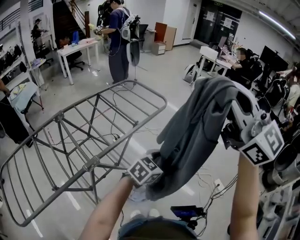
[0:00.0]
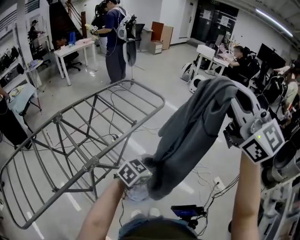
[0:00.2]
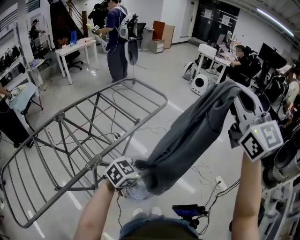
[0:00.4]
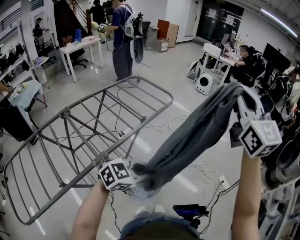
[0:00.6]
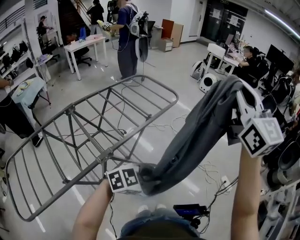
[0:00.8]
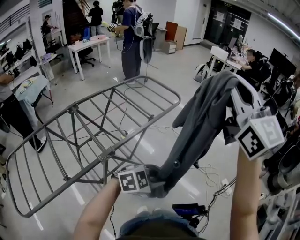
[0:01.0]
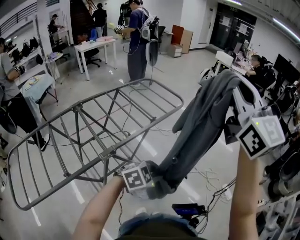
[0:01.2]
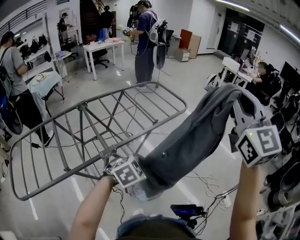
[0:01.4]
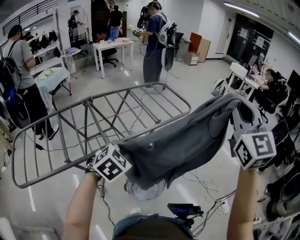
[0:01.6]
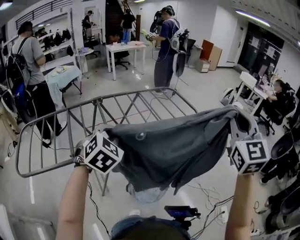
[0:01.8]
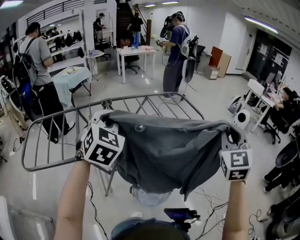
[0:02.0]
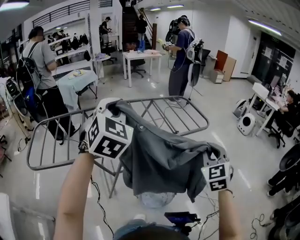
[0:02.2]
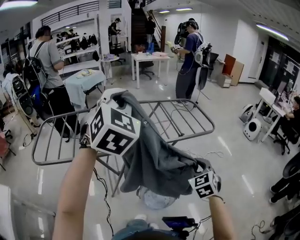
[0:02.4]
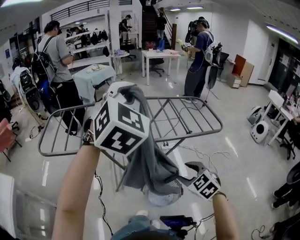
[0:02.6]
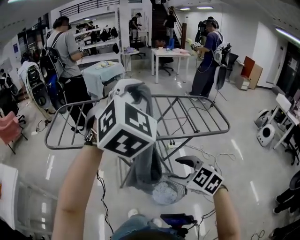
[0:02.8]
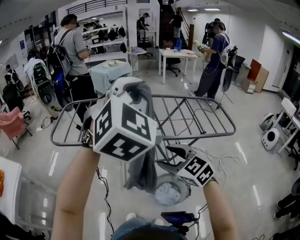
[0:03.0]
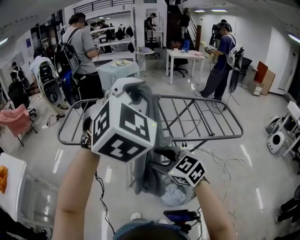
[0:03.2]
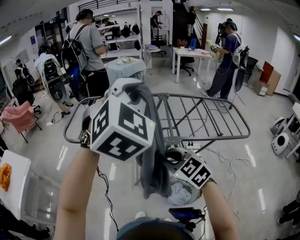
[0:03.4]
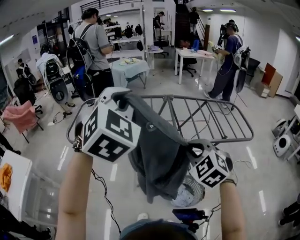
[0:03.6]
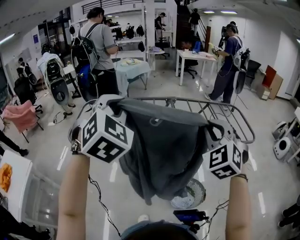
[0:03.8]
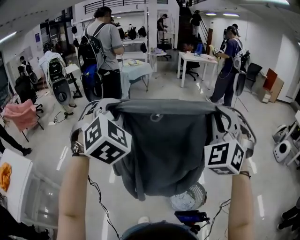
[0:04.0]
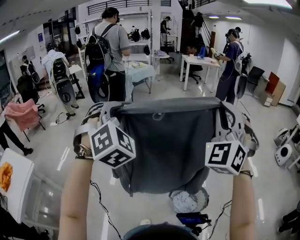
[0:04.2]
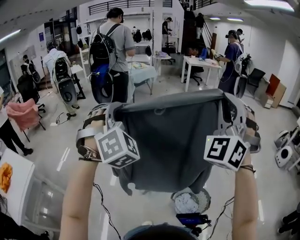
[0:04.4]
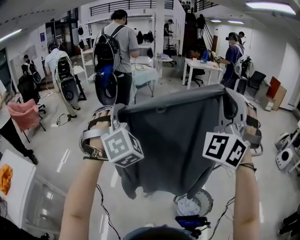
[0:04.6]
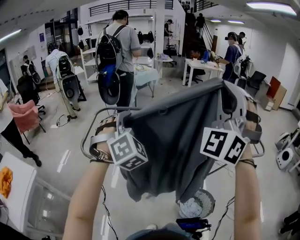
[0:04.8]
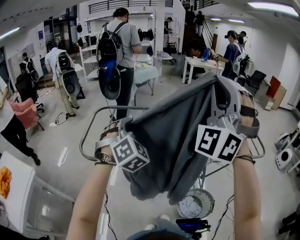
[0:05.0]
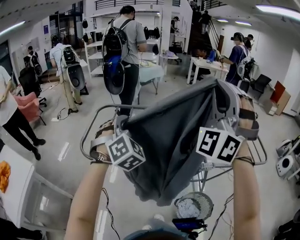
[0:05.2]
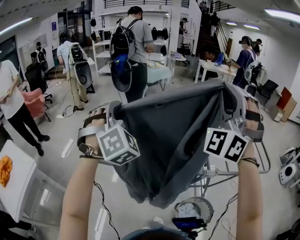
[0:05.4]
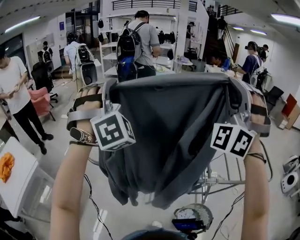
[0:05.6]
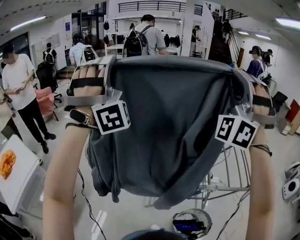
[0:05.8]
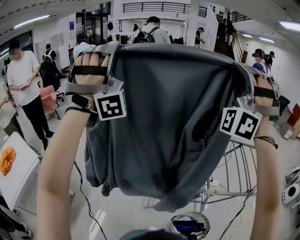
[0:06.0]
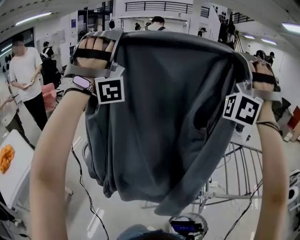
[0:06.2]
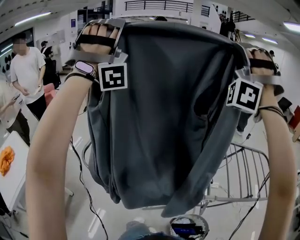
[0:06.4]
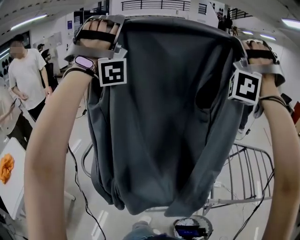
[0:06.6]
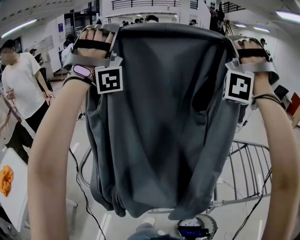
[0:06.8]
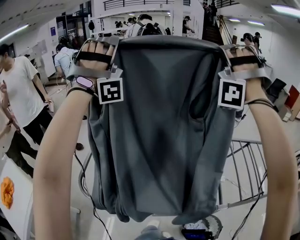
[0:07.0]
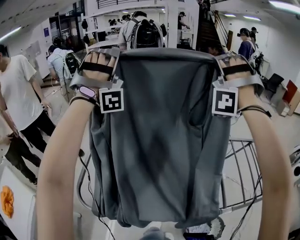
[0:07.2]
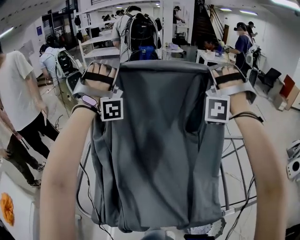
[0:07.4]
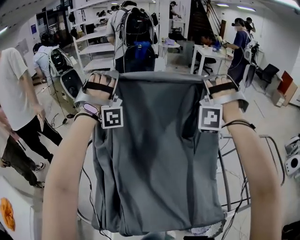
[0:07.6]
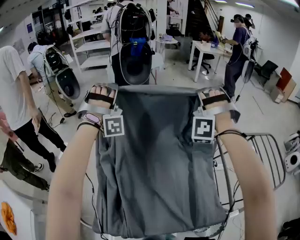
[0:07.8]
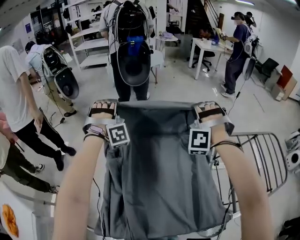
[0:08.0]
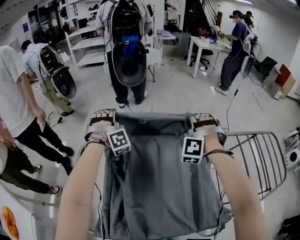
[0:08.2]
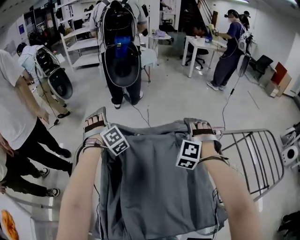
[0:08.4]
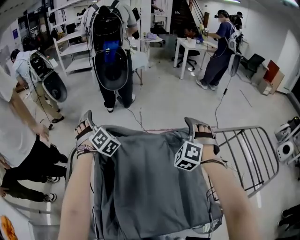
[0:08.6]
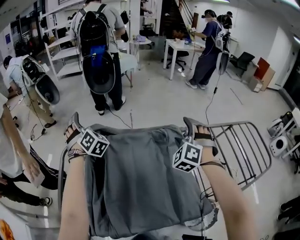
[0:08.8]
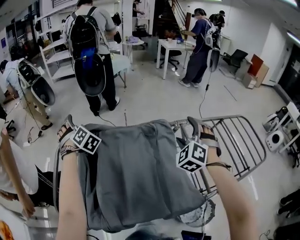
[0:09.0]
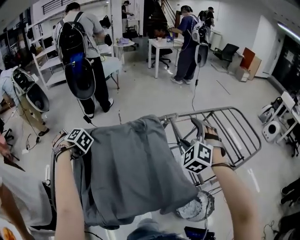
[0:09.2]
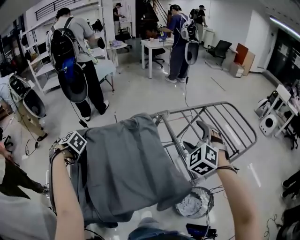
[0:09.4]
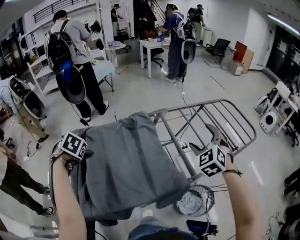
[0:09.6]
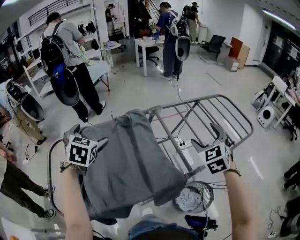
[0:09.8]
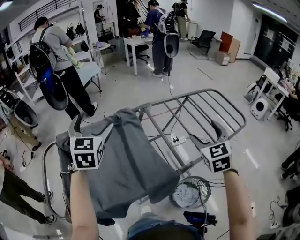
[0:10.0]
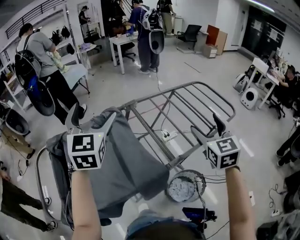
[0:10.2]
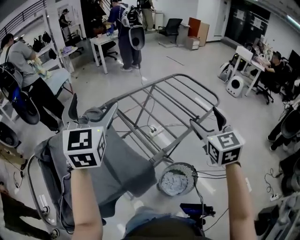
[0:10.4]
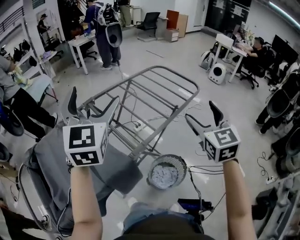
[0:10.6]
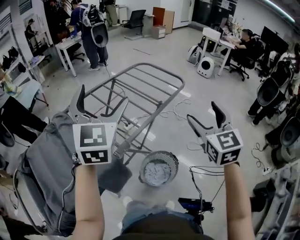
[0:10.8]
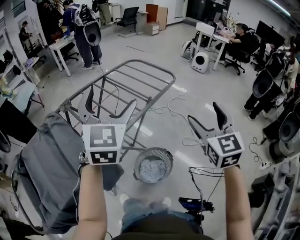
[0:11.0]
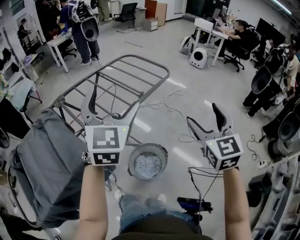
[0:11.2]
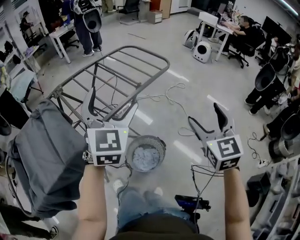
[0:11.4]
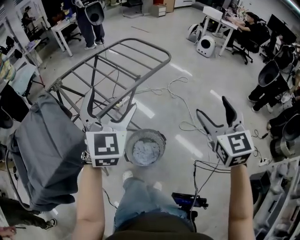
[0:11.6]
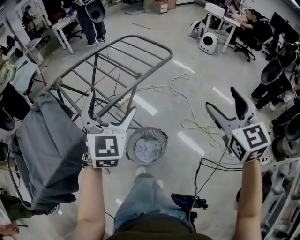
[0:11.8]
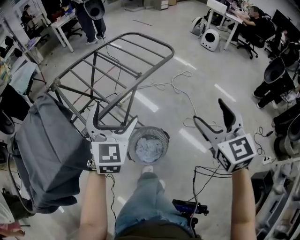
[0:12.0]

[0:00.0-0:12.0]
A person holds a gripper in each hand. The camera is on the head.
0:00.0 to 0:01.6: The left gripper changes place by approximately 25 cm, turns by approximately 40 degrees, and closes up.
0:01.6 to 0:03.0: The left gripper travels upward by approximately 30 cm, and angles its fingers upward, by roughly 40 degrees. The right gripper travels downward by about 25 cm, angles its fingers downward, by some 30 degrees, and opens.
0:03.0 to 0:04.4: The left gripper travels to the left and forward by about 30 cm, and changes its angle by approximately 30 degrees; the right gripper is displaced upward by some 30 cm, tilts its fingers approximately 40 degrees upward, and closes its fingers.
0:04.4 to 0:06.0: The right gripper is displaced forward and upward by approximately 25 cm, and turns by roughly 30 degrees; the left gripper is displaced upward, forward and to the left by roughly 25 cm, and points its fingers approximately 50 degrees further upward.
0:06.0 to 0:07.6: Both grippers move forward and downward, some 40 cm. The left gripper swivels roughly 30 degrees. Meanwhile the right gripper swivels about 30 degrees.
0:07.6 to 0:09.0: The right gripper travels downward, backward and to the right by some 30 cm, twists roughly 40 degrees clockwise, seen from behind, and opens up; the left gripper moves downward, roughly 25 cm, points its fingers approximately 50 degrees further downward, and opens its fingers.
0:09.0 to 0:10.4: Both grippers are carried about 40 cm. The right gripper rotates around the line of its fingers by some 60 degrees, clockwise from behind. Meanwhile the left gripper points its fingers some 30 degrees further upward.
0:10.4 to 0:12.0: The right gripper heads to the right, covering approximately 30 cm. The left gripper moves to the right and downward, approximately 40 cm, and changes its angle by roughly 20 degrees.

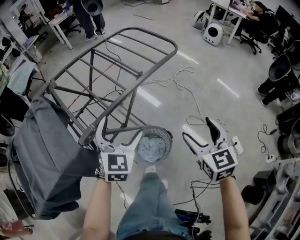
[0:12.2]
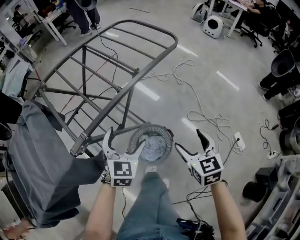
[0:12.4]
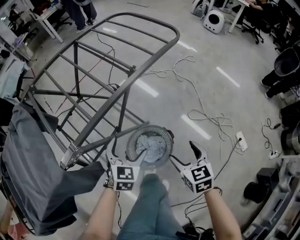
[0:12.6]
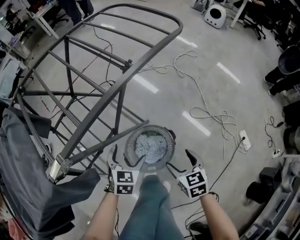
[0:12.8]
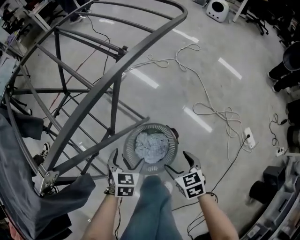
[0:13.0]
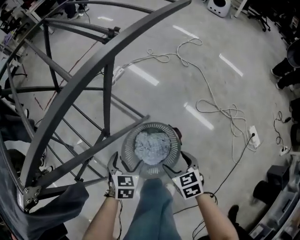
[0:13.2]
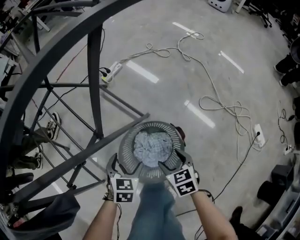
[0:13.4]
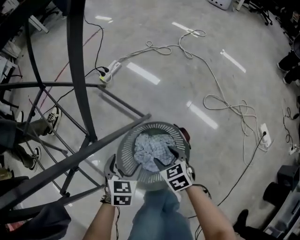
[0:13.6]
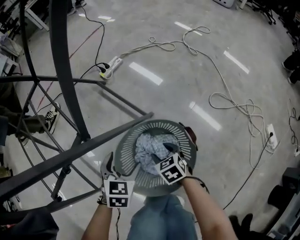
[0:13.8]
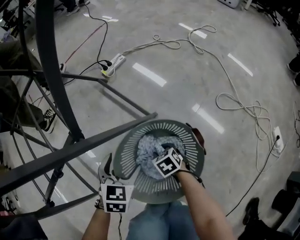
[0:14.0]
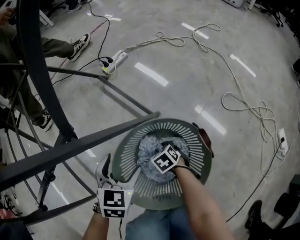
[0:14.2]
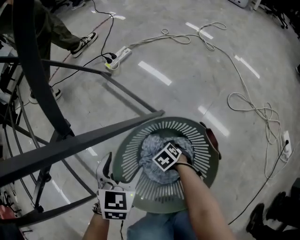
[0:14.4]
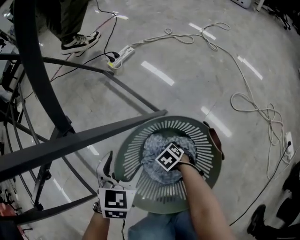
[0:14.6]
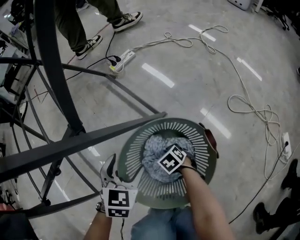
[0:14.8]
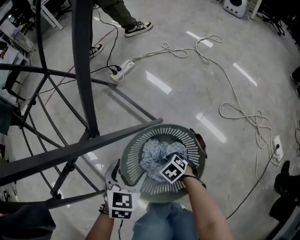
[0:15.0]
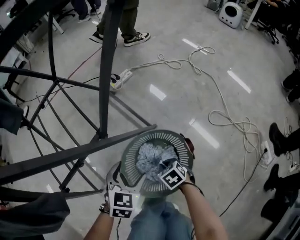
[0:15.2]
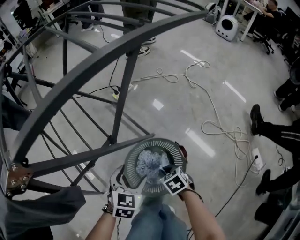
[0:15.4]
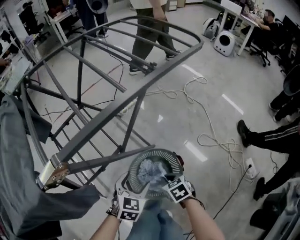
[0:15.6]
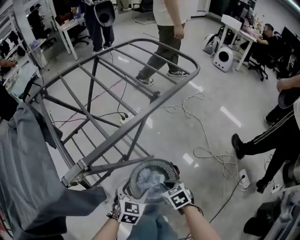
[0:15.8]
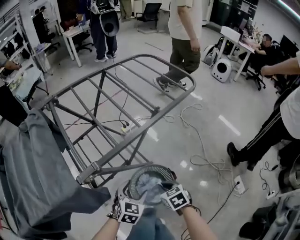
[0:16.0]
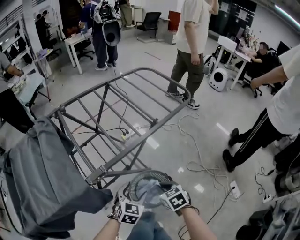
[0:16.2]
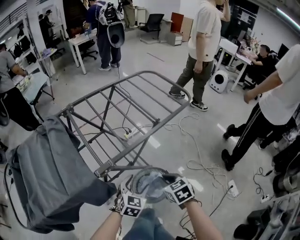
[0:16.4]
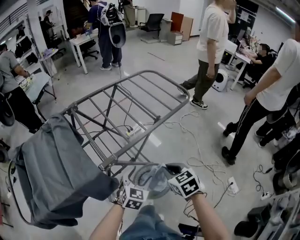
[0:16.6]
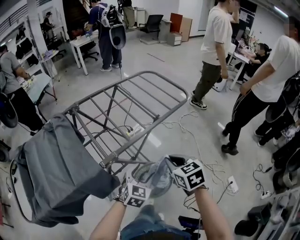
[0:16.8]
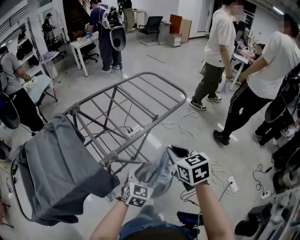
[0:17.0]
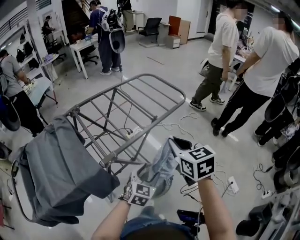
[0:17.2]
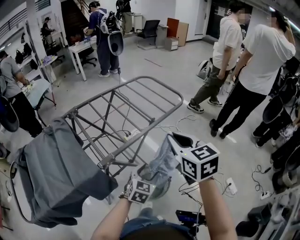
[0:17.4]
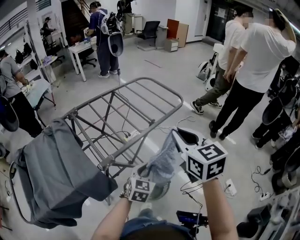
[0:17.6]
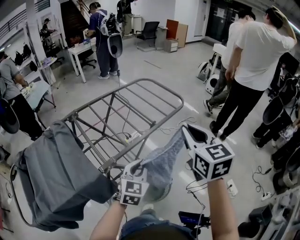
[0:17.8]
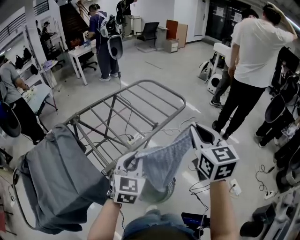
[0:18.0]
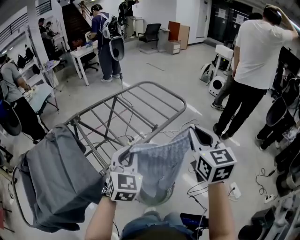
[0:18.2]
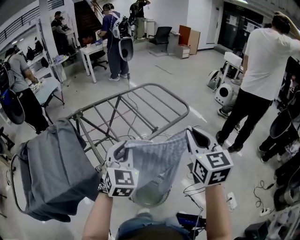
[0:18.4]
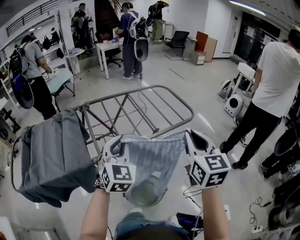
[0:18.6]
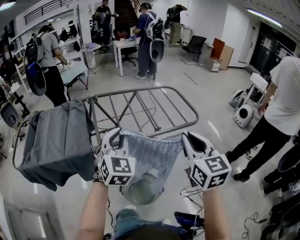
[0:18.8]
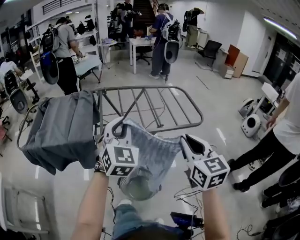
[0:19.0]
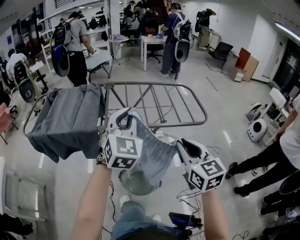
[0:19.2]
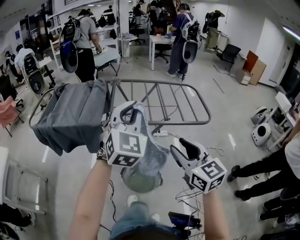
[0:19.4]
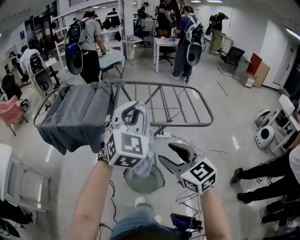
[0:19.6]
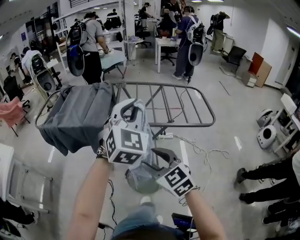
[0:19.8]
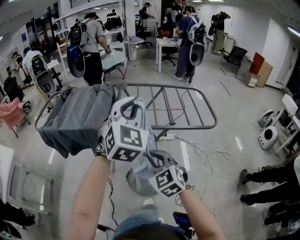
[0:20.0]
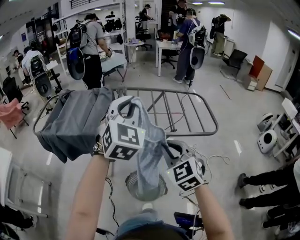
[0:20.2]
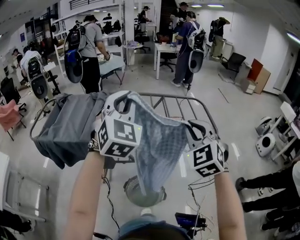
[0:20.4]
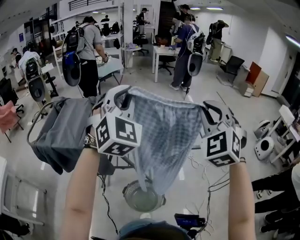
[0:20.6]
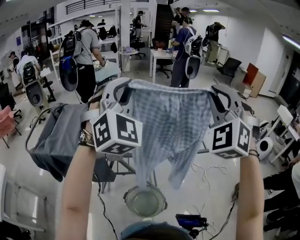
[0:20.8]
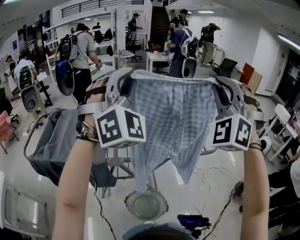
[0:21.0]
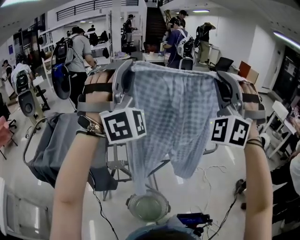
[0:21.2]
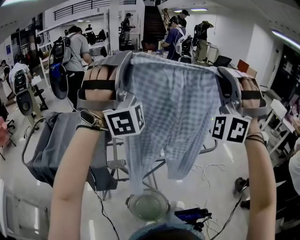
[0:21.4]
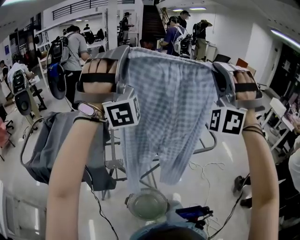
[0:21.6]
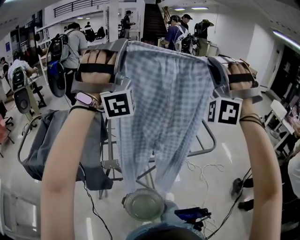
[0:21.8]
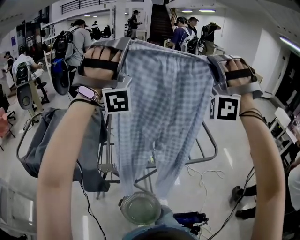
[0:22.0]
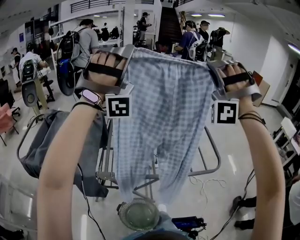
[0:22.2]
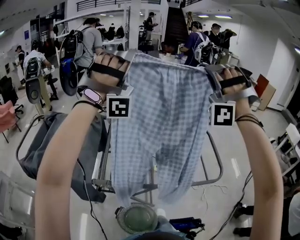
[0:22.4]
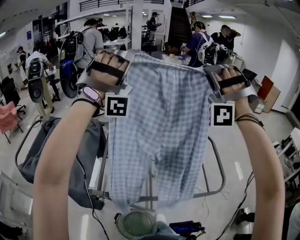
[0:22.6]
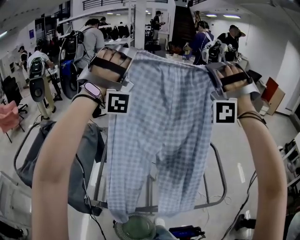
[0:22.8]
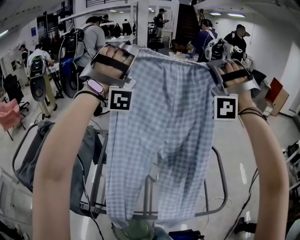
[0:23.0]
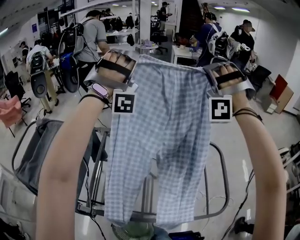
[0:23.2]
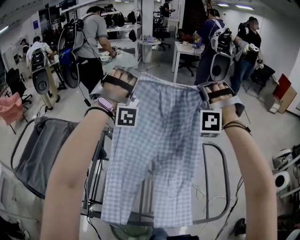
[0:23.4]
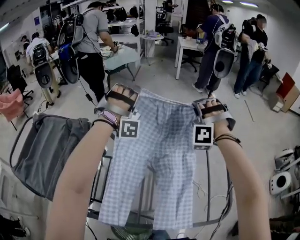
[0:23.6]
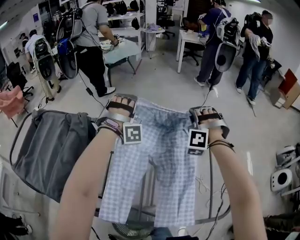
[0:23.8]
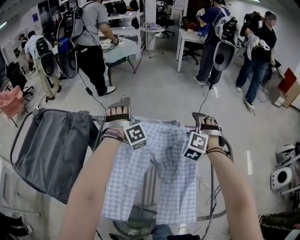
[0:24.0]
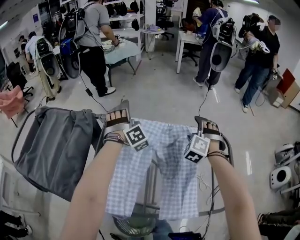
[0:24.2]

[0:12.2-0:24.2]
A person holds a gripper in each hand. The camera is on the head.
0:12.2 to 0:13.8: The two grippers go some 60 cm downward. The left gripper tips its fingers downward by about 30 degrees. The right gripper tips its fingers downward by roughly 30 degrees.
0:13.8 to 0:15.2: The left gripper heads upward, covering some 5 cm. The right gripper goes downward and returns, approximately 20 cm each way, and closes up.
0:15.2 to 0:16.6: The grippers both shift upward by approximately 50 cm. The right gripper changes its angle by roughly 30 degrees.
0:16.6 to 0:18.2: The left gripper shifts about 20 cm upward, rotates some 20 degrees, and closes up. Meanwhile the right gripper goes some 25 cm upward and to the right, and tips its fingers upward by some 30 degrees.
0:18.2 to 0:19.8: The right gripper moves about 15 cm, rotates approximately 70 degrees, and opens its fingers; the left gripper moves upward, about 15 cm, and changes its angle by about 40 degrees.
0:19.8 to 0:21.2: The left gripper is displaced upward and forward by about 25 cm, and rolls clockwise, seen from behind, by some 50 degrees; the right gripper heads upward, forward and to the right, covering approximately 40 cm, angles its fingers upward, by some 40 degrees, and closes up.
0:21.2 to 0:22.6: Both grippers travel together forward, roughly 30 cm. The right gripper turns by some 30 degrees. The left gripper twists about 50 degrees clockwise, seen from behind.
0:22.6 to 0:24.2: The grippers both shift downward by about 40 cm. The left gripper tilts its fingers about 60 degrees downward, and opens up. The right gripper tilts its fingers approximately 50 degrees downward, and opens its fingers.
